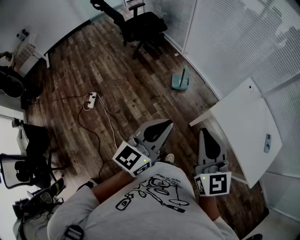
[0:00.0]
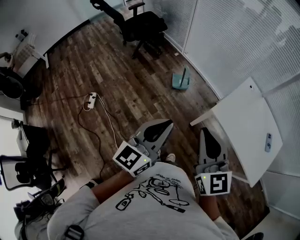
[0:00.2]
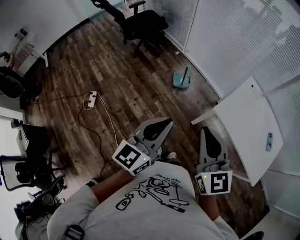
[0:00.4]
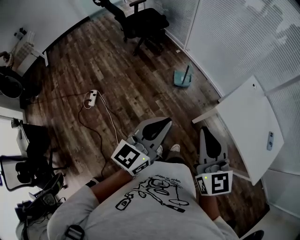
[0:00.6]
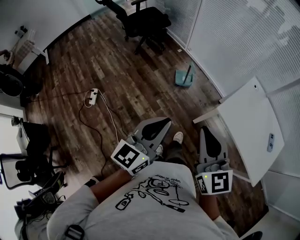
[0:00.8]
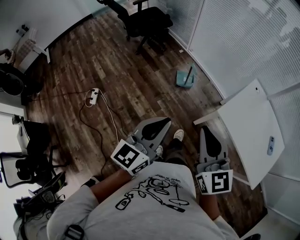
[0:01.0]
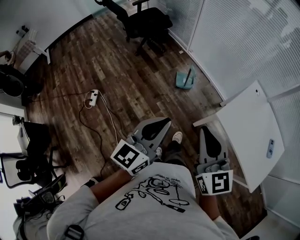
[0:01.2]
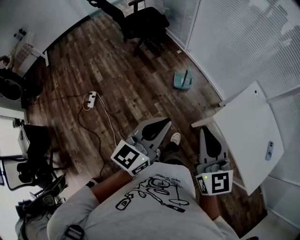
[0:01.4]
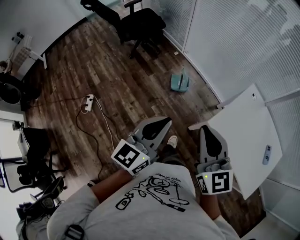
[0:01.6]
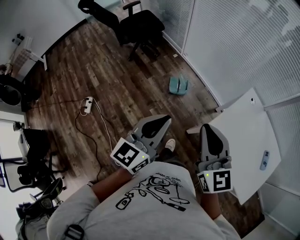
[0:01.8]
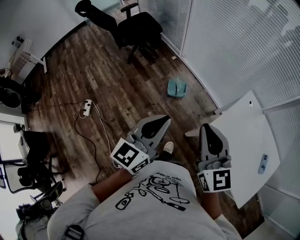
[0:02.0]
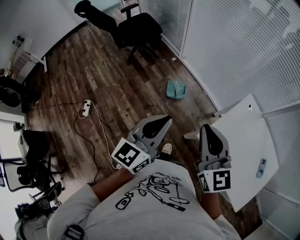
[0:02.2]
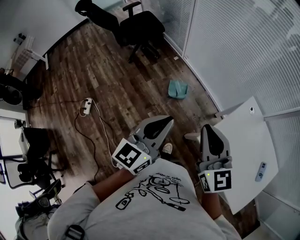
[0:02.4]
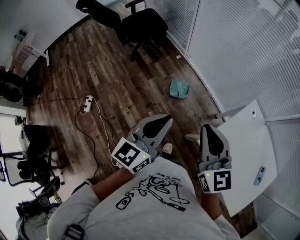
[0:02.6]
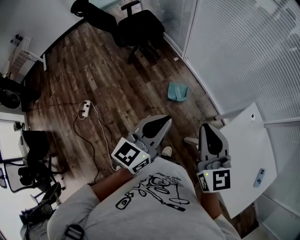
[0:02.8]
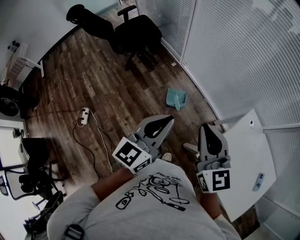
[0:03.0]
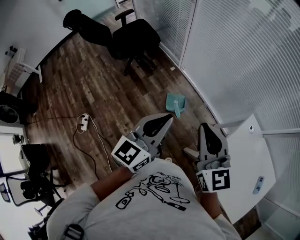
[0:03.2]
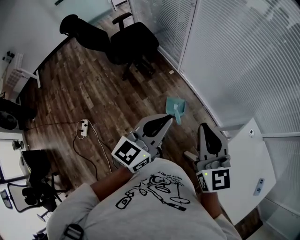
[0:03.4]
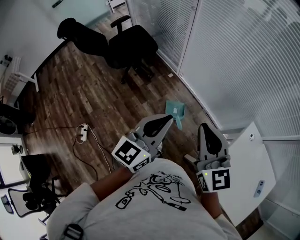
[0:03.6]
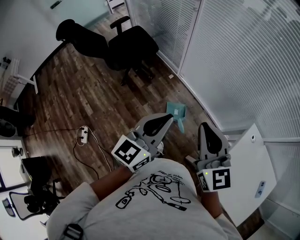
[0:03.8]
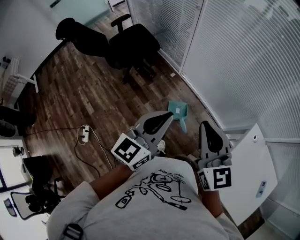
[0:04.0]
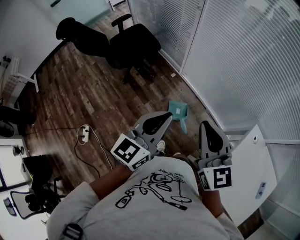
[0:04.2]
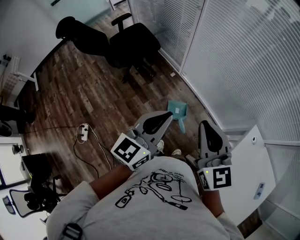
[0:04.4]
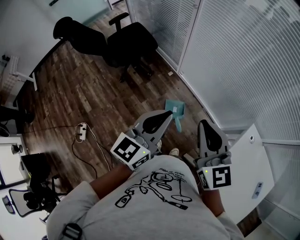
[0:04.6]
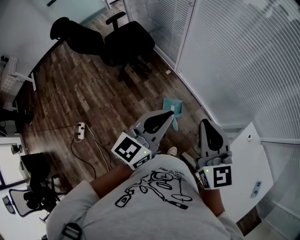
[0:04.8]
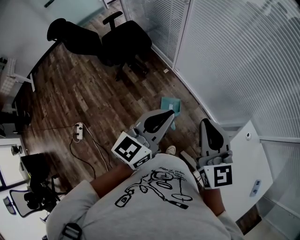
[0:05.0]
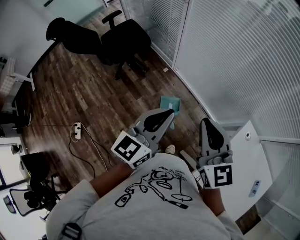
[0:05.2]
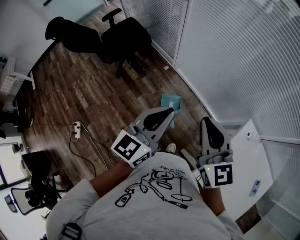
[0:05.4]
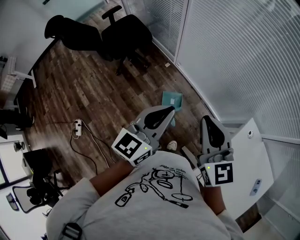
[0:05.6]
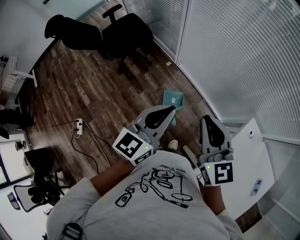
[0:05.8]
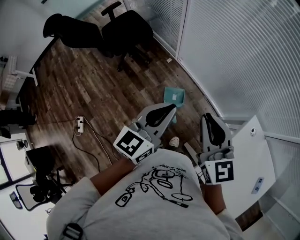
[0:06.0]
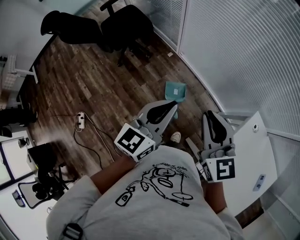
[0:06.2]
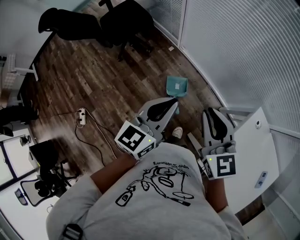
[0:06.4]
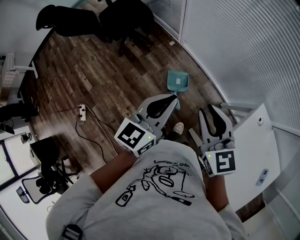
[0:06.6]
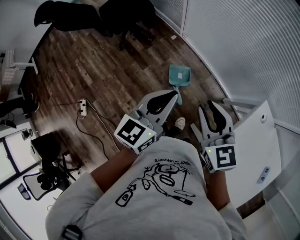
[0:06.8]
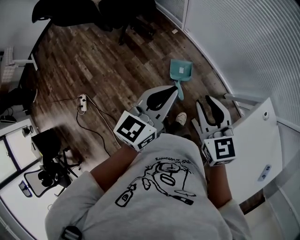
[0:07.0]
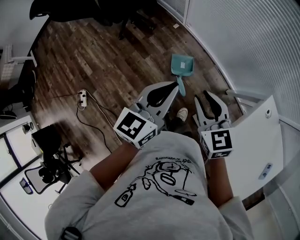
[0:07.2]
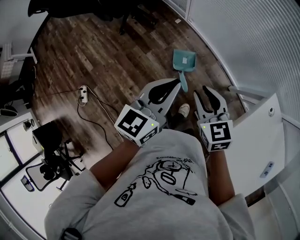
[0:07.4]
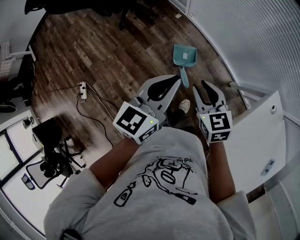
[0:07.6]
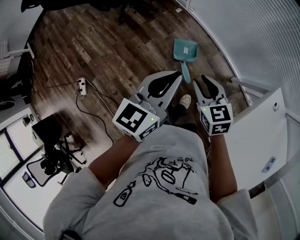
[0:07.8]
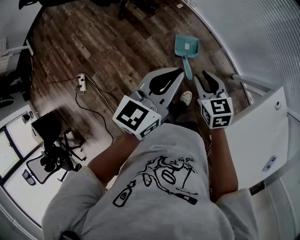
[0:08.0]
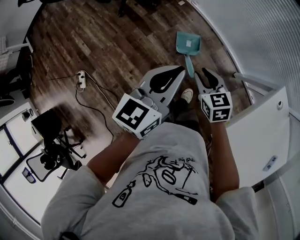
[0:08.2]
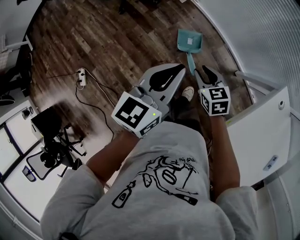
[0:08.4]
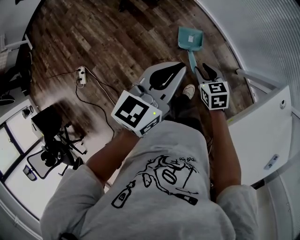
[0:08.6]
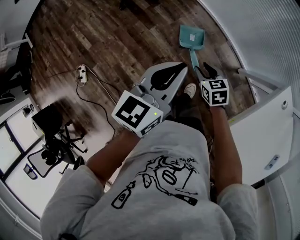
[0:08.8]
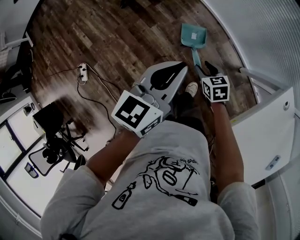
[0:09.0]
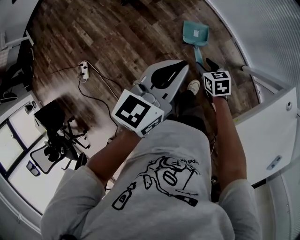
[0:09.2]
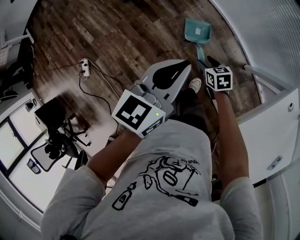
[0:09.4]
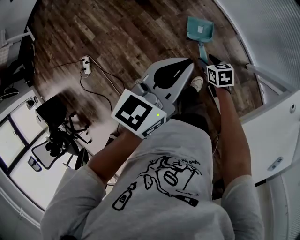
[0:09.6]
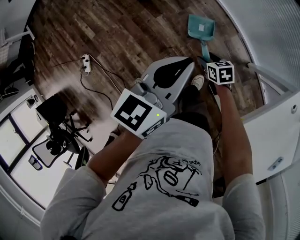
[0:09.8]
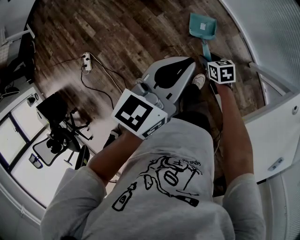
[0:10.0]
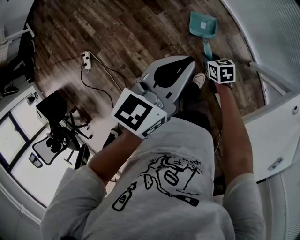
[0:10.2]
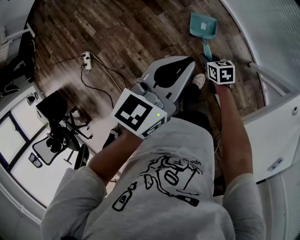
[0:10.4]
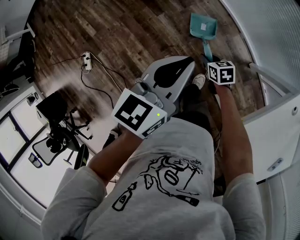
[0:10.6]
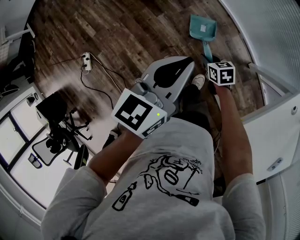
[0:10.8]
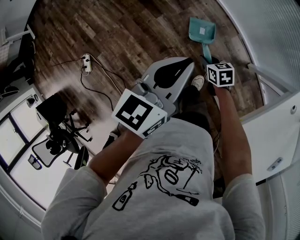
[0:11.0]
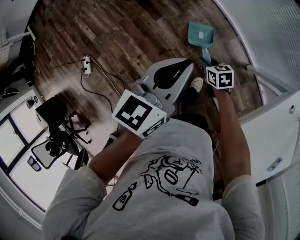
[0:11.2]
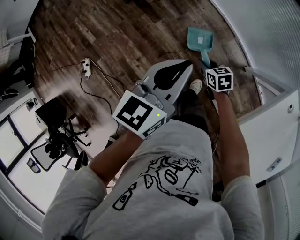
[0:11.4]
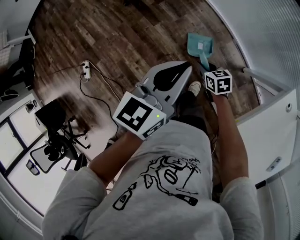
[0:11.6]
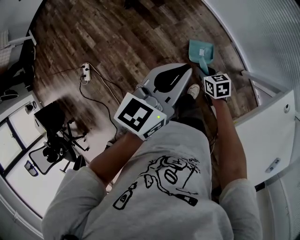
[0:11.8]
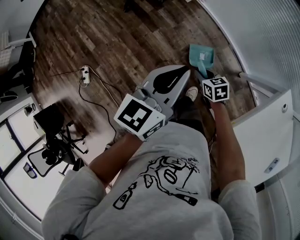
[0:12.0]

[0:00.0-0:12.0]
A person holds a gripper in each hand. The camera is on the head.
0:00.0 to 0:01.6: Both grippers move forward, about 10 cm.
0:01.6 to 0:03.0: Both grippers travel together forward, approximately 25 cm.
0:03.0 to 0:04.4: The two grippers go roughly 20 cm forward and to the left.
0:04.4 to 0:06.0: Both grippers travel together to the right, some 10 cm.
0:06.0 to 0:07.6: The left gripper moves downward, approximately 10 cm. Meanwhile the right gripper travels downward by roughly 25 cm, and swivels roughly 30 degrees.
0:07.6 to 0:09.0: The right gripper is displaced downward by about 20 cm; the left gripper heads downward, covering about 5 cm.
0:09.0 to 0:10.4: The right gripper is displaced downward by some 10 cm.
0:10.4 to 0:12.0: The right gripper moves upward, some 5 cm; the left gripper moves approximately 5 cm.

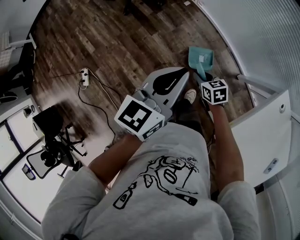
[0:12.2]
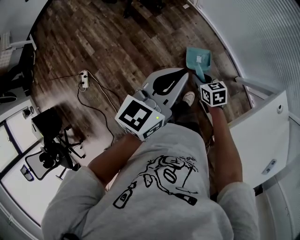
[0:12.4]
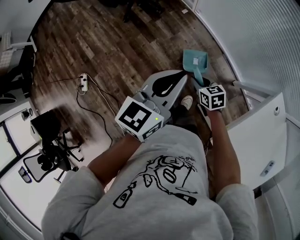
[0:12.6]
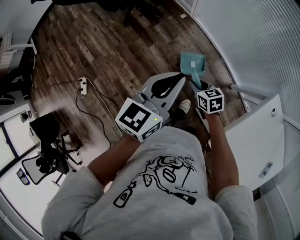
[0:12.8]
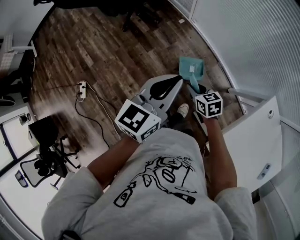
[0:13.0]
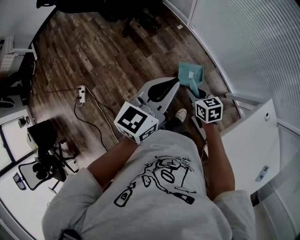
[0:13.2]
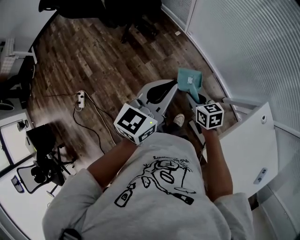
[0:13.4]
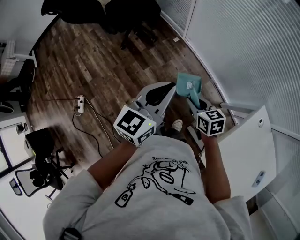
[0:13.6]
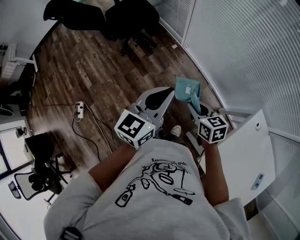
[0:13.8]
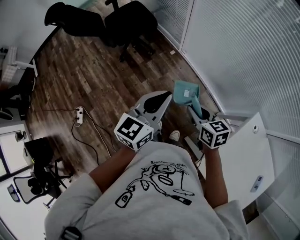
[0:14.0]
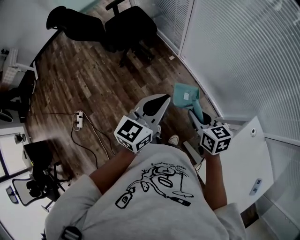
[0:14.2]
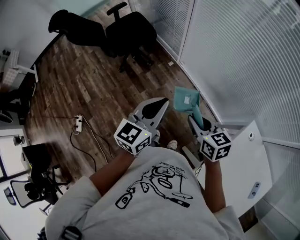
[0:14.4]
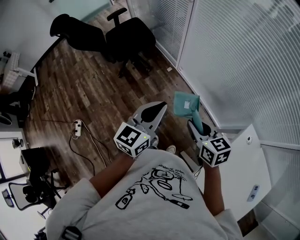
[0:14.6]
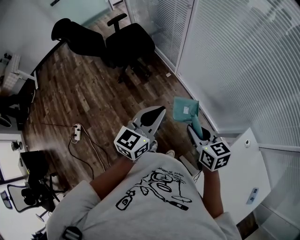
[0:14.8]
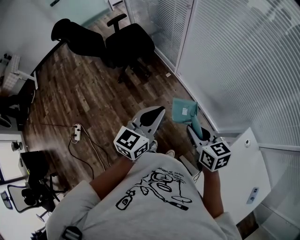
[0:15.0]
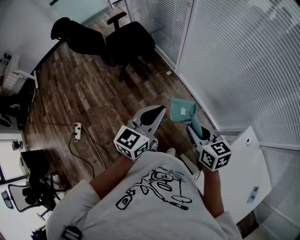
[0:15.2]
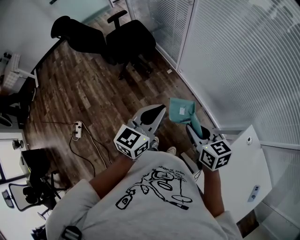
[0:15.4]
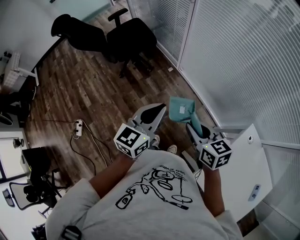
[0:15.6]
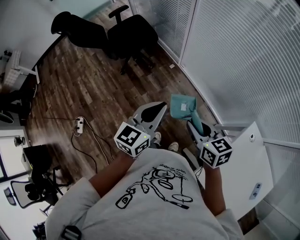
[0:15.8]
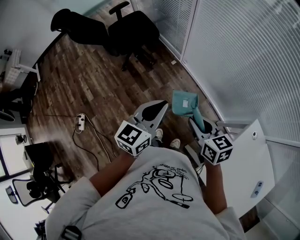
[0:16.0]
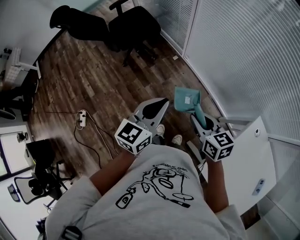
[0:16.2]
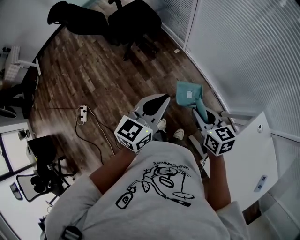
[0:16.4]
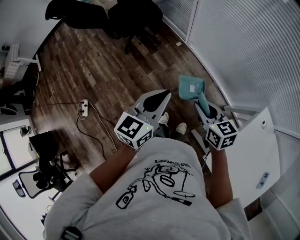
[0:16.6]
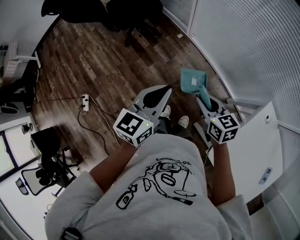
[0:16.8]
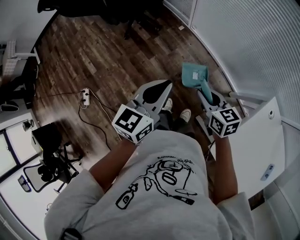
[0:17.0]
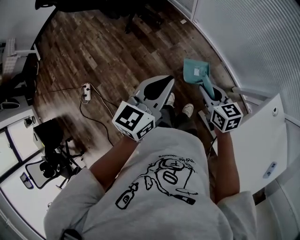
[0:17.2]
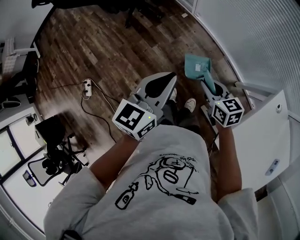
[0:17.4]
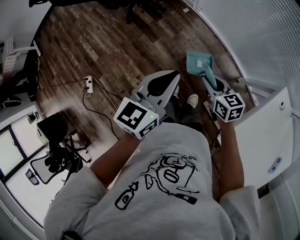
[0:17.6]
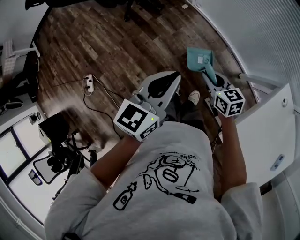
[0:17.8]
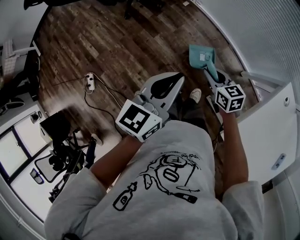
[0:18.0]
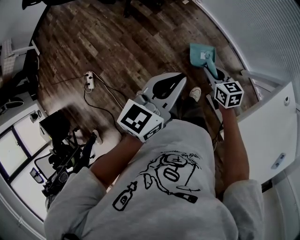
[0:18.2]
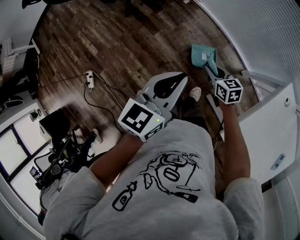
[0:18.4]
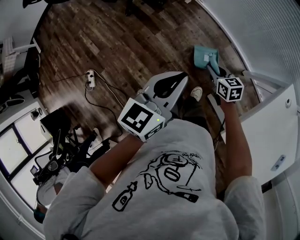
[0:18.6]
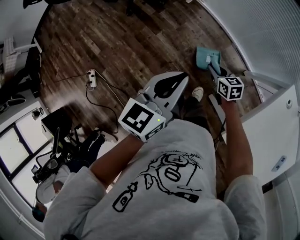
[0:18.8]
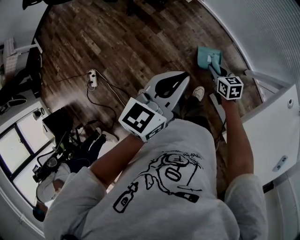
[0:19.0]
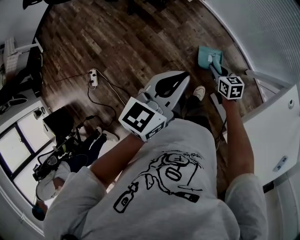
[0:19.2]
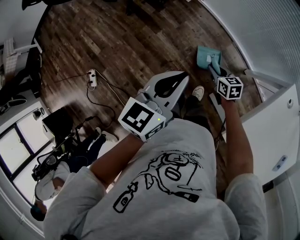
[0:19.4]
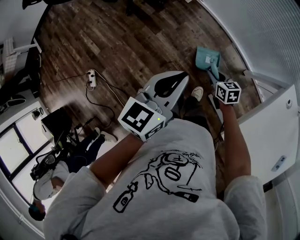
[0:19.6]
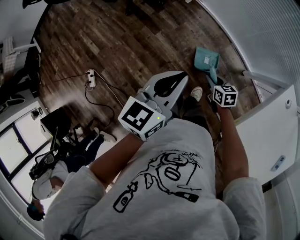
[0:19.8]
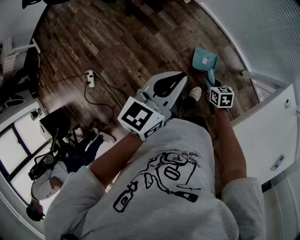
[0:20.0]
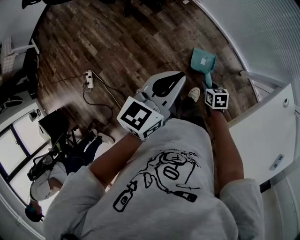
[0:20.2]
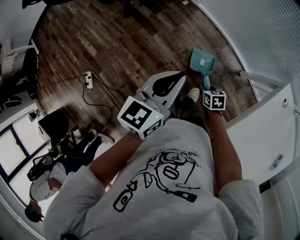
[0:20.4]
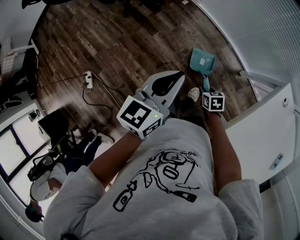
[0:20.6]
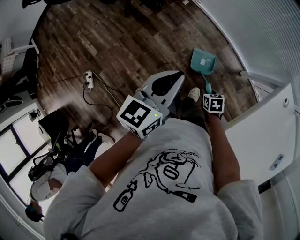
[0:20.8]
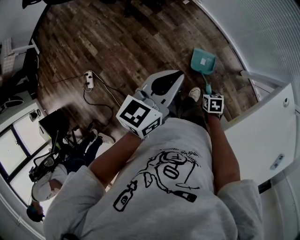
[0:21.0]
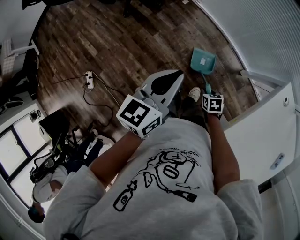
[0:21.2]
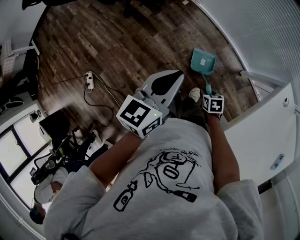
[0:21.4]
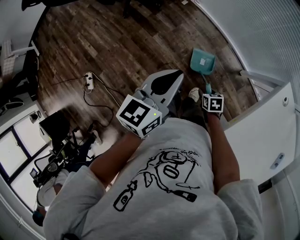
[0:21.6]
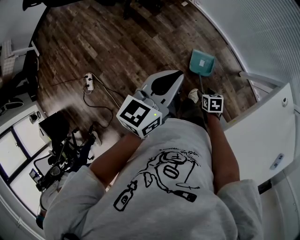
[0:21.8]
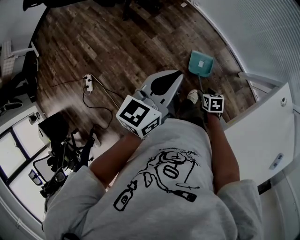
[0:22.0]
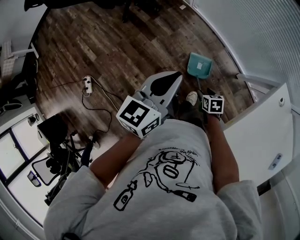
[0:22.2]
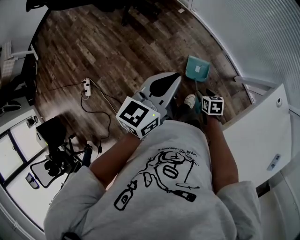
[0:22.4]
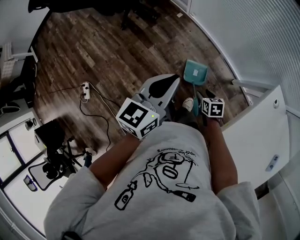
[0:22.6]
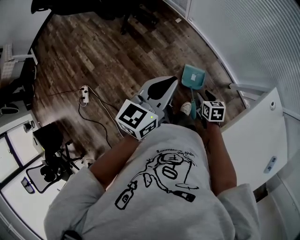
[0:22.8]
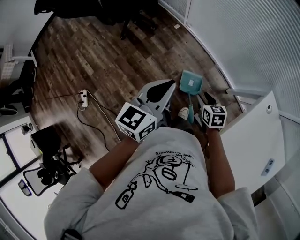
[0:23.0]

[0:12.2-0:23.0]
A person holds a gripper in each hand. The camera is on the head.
0:12.2 to 0:13.8: The right gripper goes approximately 20 cm upward, while the left gripper travels upward by some 10 cm.
0:13.8 to 0:15.2: The right gripper shifts some 15 cm upward.
0:15.2 to 0:16.8: The left gripper shifts approximately 5 cm downward. Meanwhile the right gripper travels downward by some 10 cm.
0:16.8 to 0:18.4: The left gripper goes some 5 cm downward. Meanwhile the right gripper heads downward, covering approximately 20 cm.
0:18.4 to 0:20.0: The right gripper travels downward and backward by some 10 cm.
0:20.0 to 0:21.4: The right gripper is displaced backward by roughly 5 cm.
0:21.4 to 0:23.0: The right gripper goes approximately 20 cm upward and forward. The left gripper travels upward by approximately 5 cm.

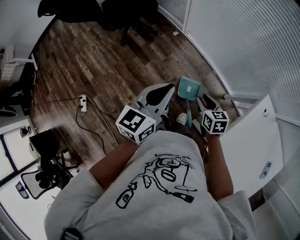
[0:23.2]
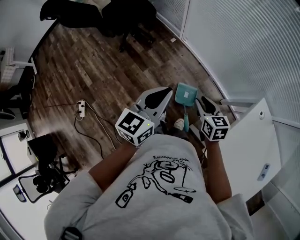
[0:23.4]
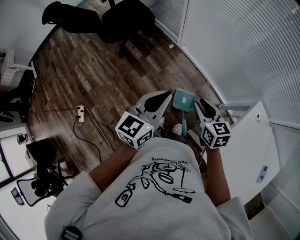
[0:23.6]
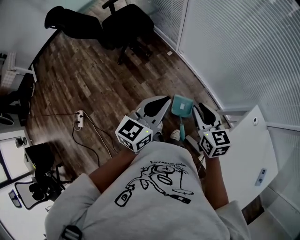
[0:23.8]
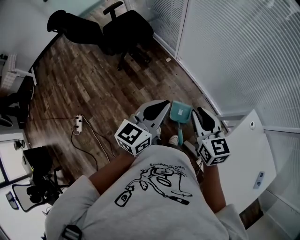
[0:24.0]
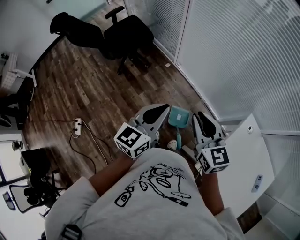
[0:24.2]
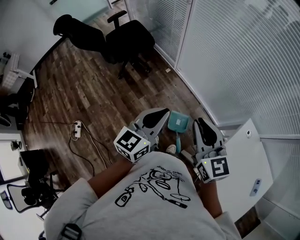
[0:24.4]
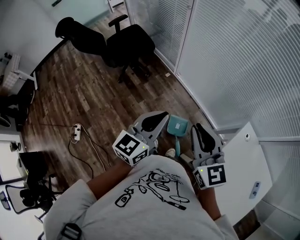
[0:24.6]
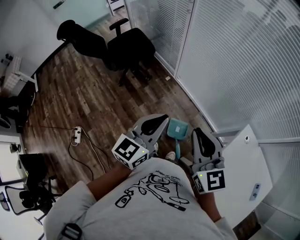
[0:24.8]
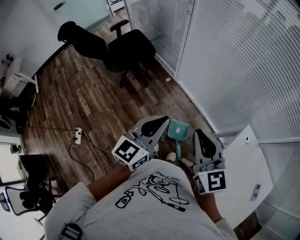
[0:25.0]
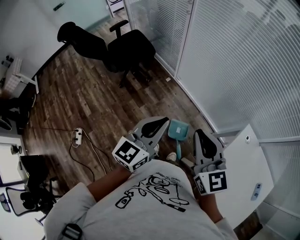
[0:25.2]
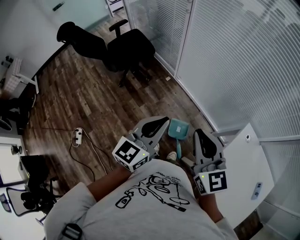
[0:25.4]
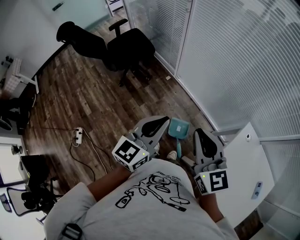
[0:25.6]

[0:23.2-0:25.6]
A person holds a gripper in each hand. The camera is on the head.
0:23.2 to 0:24.4: The right gripper moves upward, some 30 cm, points its fingers roughly 30 degrees further upward, and closes, while the left gripper travels upward by about 10 cm.
0:24.4 to 0:25.6: The grippers make only small movements.
